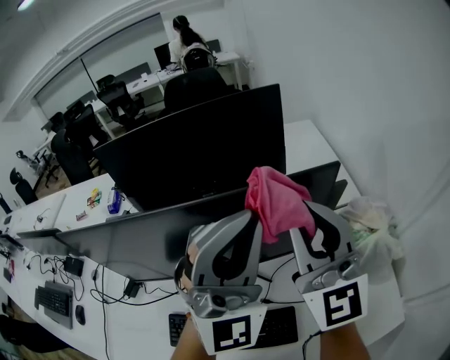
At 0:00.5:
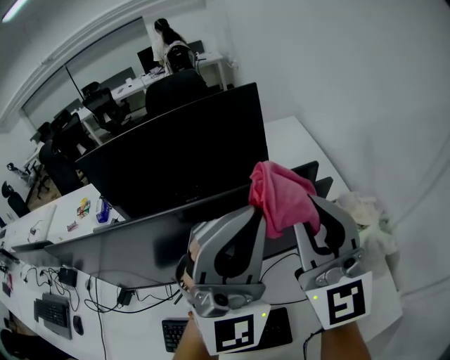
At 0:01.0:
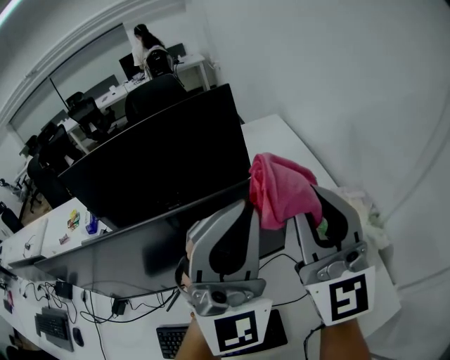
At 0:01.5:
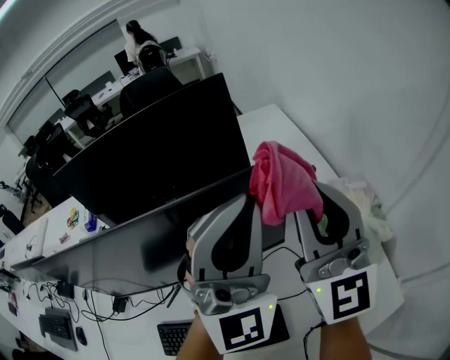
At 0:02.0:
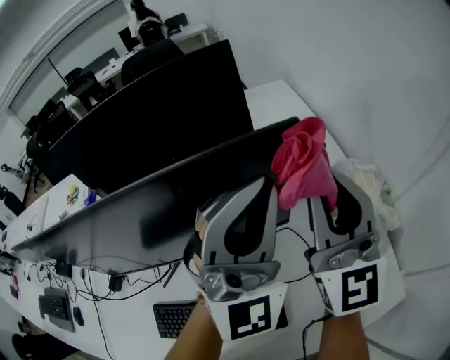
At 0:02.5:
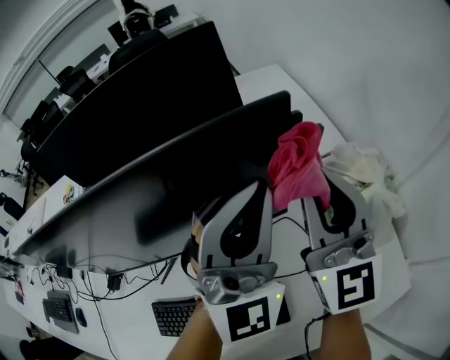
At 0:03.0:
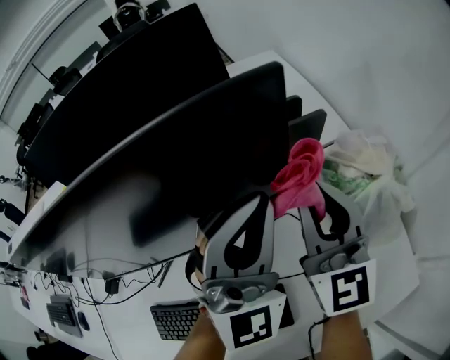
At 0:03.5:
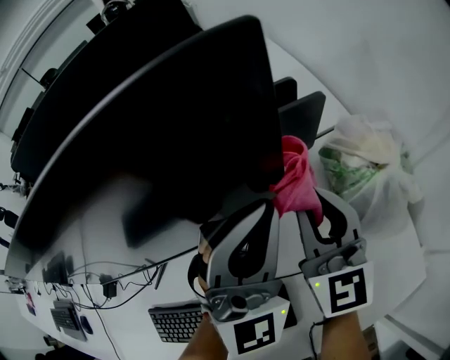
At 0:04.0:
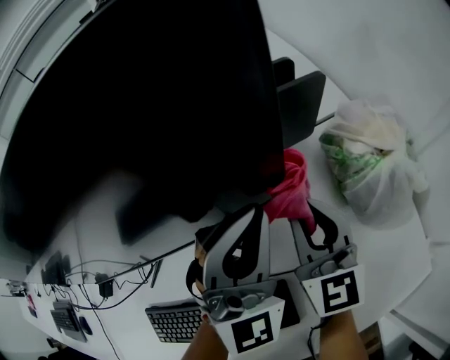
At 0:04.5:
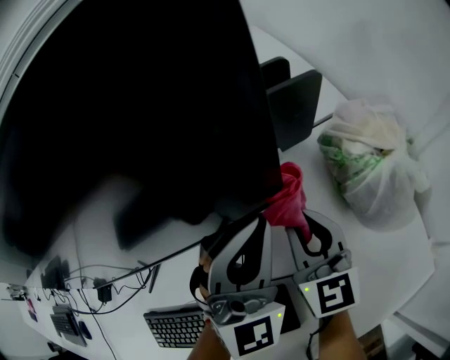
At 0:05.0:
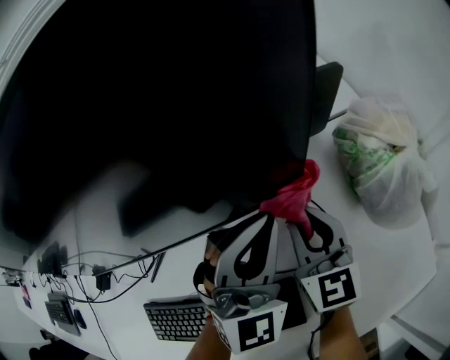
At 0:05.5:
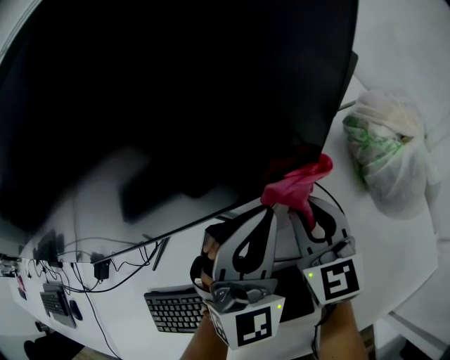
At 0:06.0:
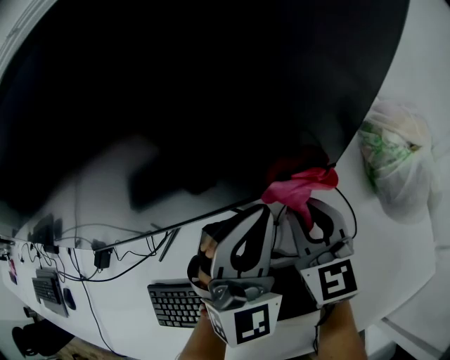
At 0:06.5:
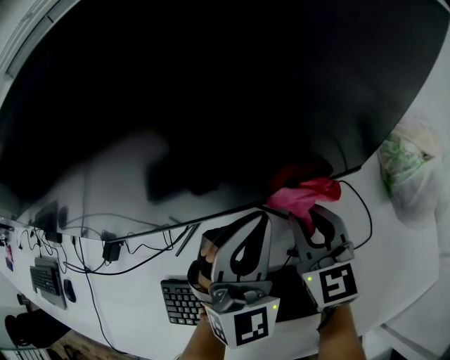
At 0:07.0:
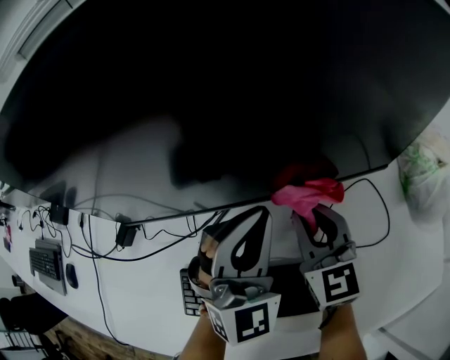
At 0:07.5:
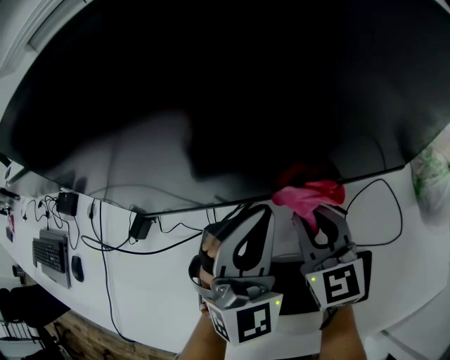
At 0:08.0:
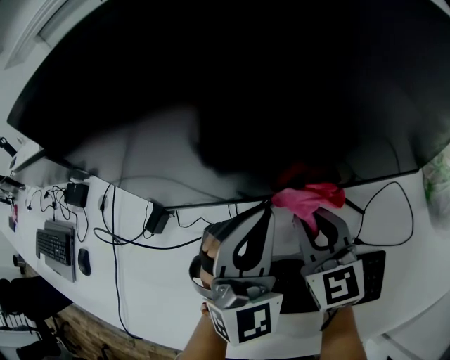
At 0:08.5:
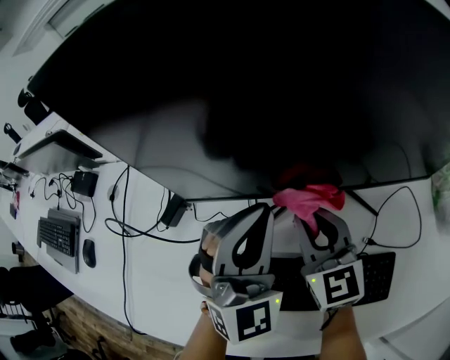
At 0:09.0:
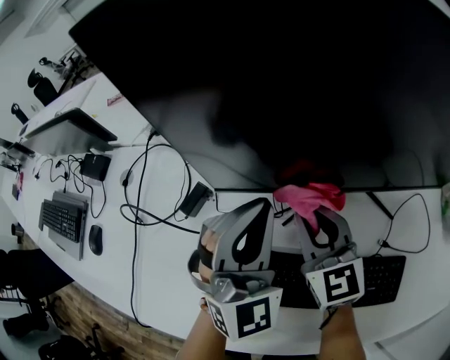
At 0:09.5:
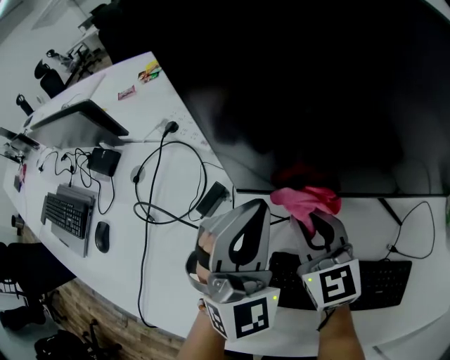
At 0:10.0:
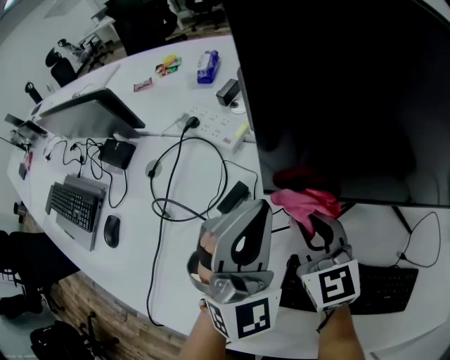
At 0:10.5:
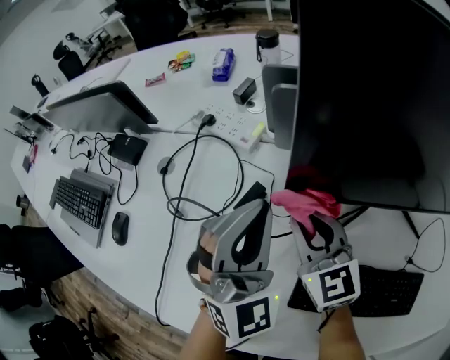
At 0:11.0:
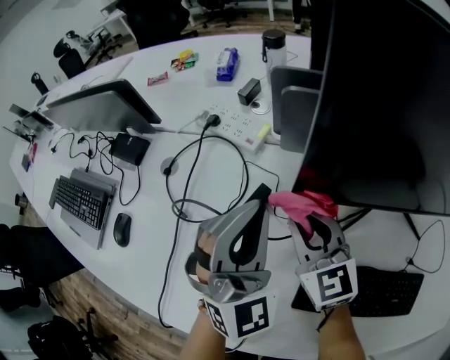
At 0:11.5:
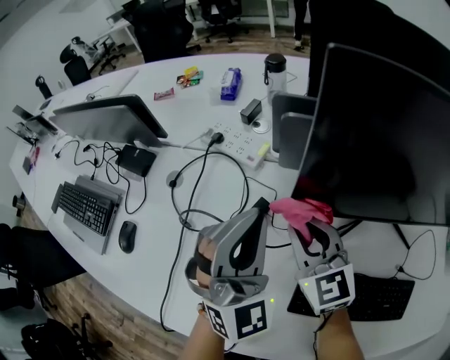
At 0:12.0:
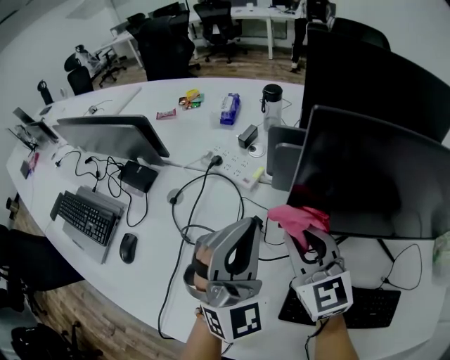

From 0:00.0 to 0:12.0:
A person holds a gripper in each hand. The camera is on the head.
From 0:00.0 to 0:02.0: The two grippers go approximately 10 cm to the right.
From 0:02.0 to 0:04.0: The two grippers go roughly 20 cm downward. The right gripper swivels approximately 20 degrees.
From 0:04.0 to 0:06.0: The two grippers go some 10 cm to the left.
From 0:06.0 to 0:08.0: The two grippers go approximately 25 cm to the left.
From 0:08.0 to 0:10.0: The two grippers go approximately 20 cm to the left.
From 0:10.0 to 0:12.0: The right gripper is displaced upward by about 10 cm. The left gripper goes some 10 cm to the left and upward.

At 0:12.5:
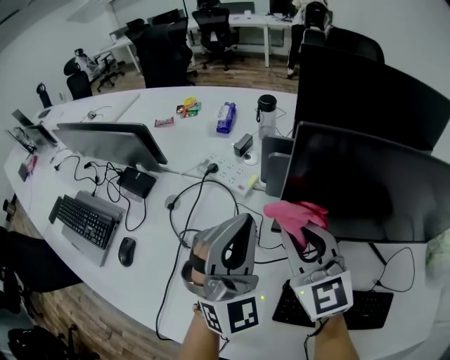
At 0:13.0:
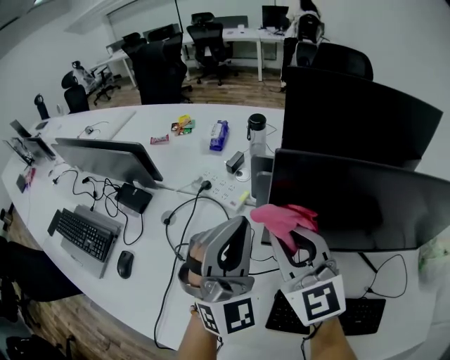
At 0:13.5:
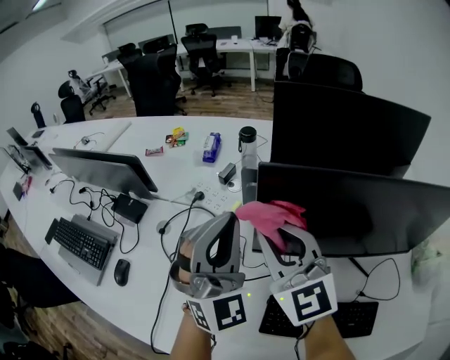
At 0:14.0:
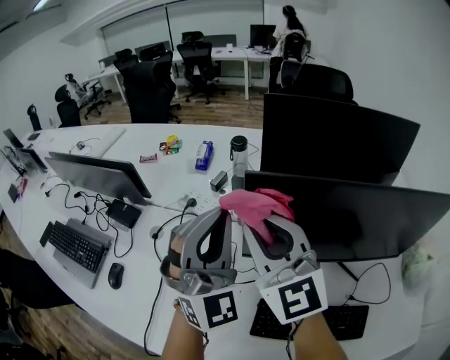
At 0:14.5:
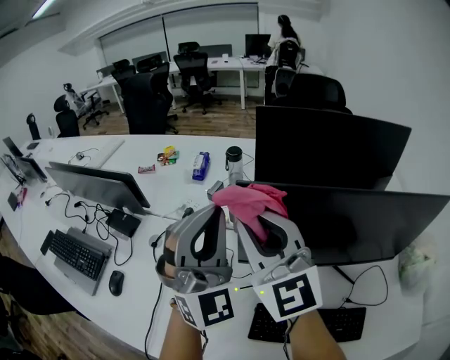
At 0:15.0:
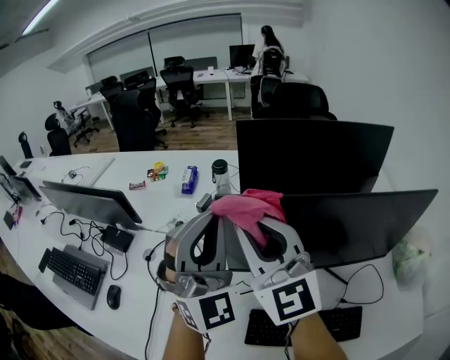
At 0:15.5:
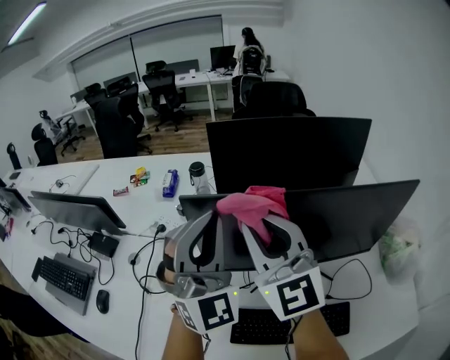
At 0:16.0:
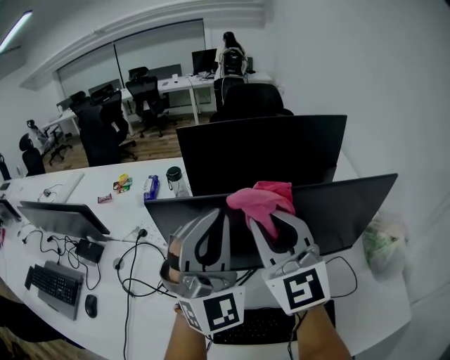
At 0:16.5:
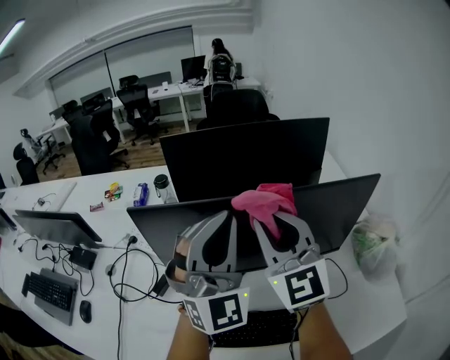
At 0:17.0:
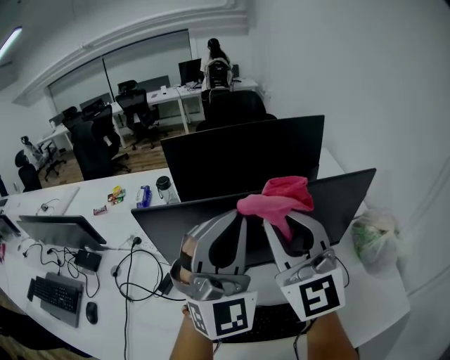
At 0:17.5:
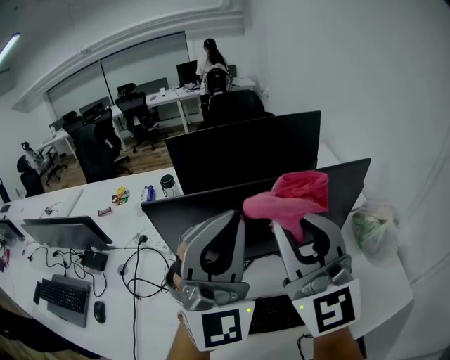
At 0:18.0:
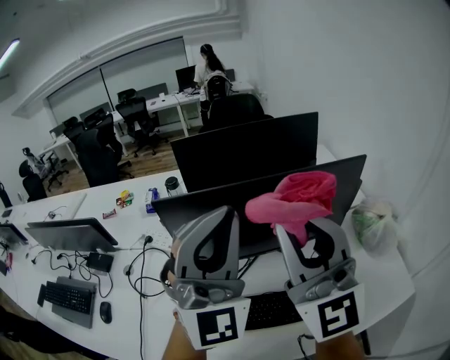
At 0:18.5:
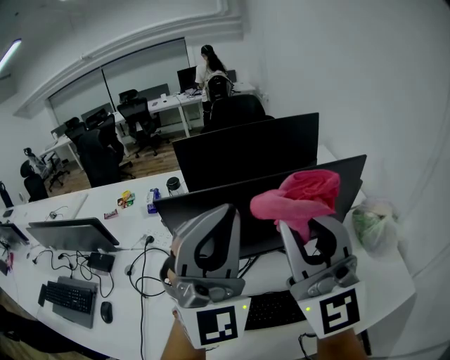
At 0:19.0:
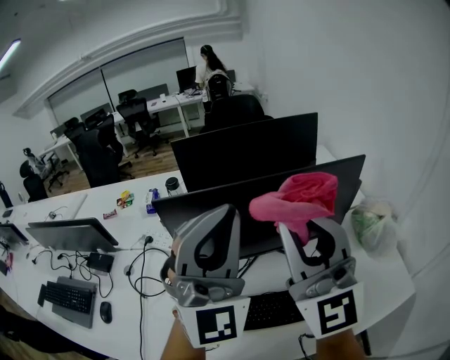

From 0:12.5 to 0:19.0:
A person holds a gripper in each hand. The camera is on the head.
From 0:12.5 to 0:14.5: The two grippers go roughly 15 cm upward.
From 0:14.5 to 0:17.0: Both grippers move to the right, about 25 cm. The right gripper turns by about 20 degrees; the left gripper changes its angle by roughly 20 degrees.
From 0:17.0 to 0:19.0: The grippers both shift backward and upward by about 10 cm.

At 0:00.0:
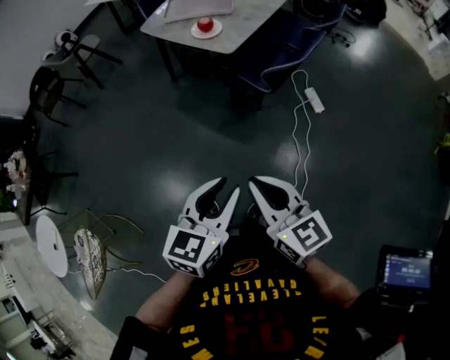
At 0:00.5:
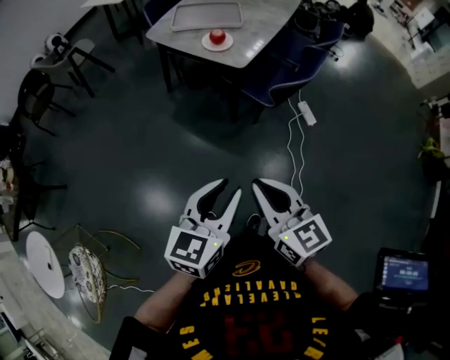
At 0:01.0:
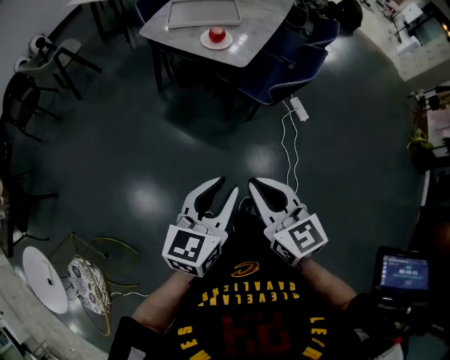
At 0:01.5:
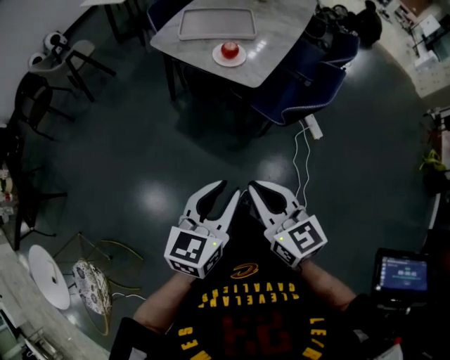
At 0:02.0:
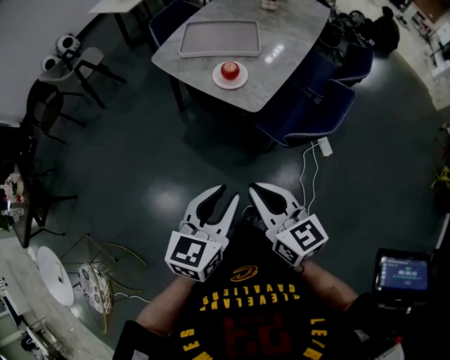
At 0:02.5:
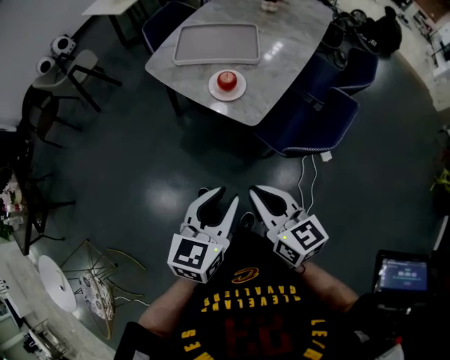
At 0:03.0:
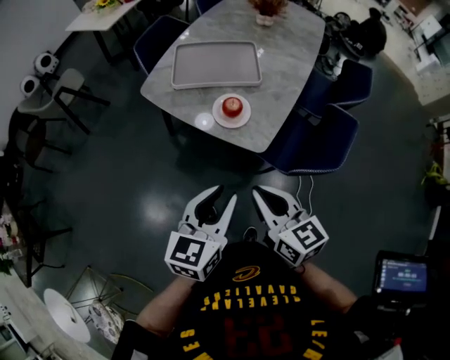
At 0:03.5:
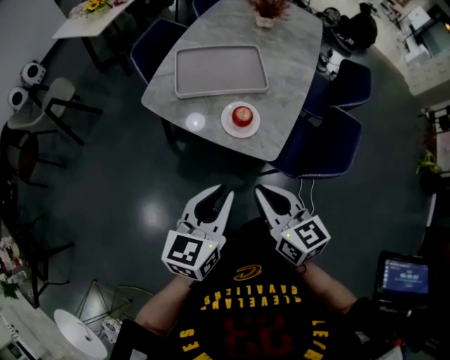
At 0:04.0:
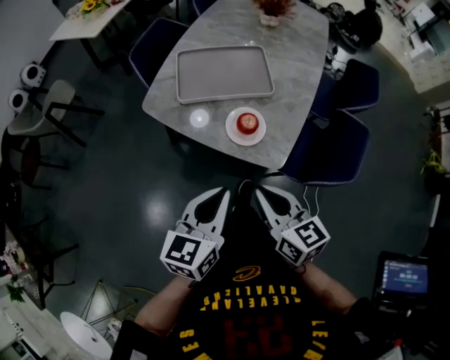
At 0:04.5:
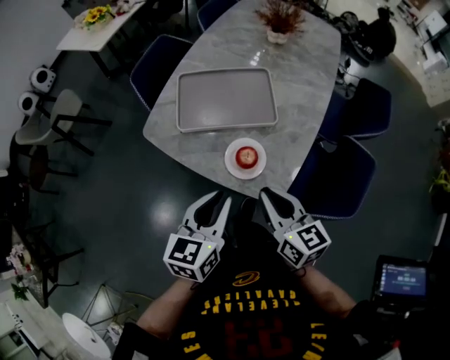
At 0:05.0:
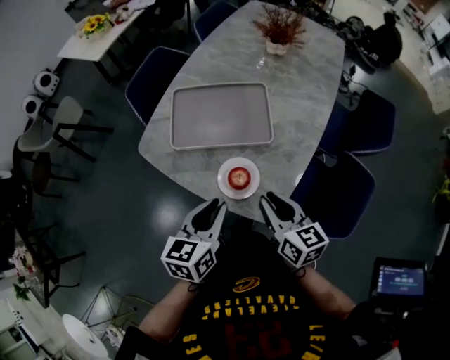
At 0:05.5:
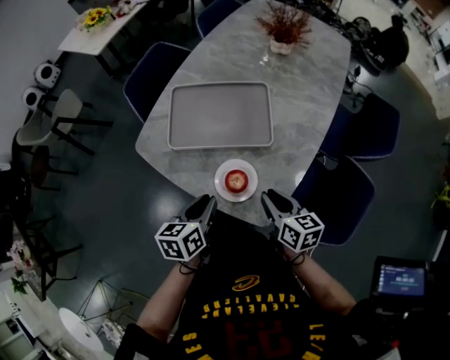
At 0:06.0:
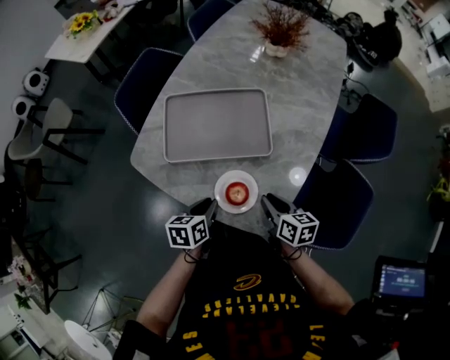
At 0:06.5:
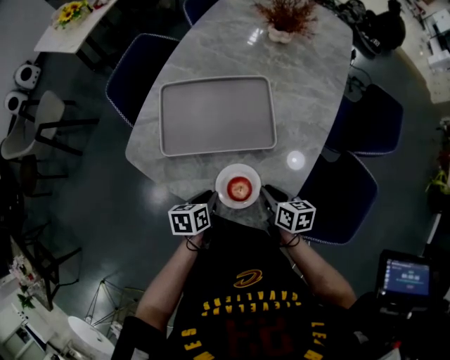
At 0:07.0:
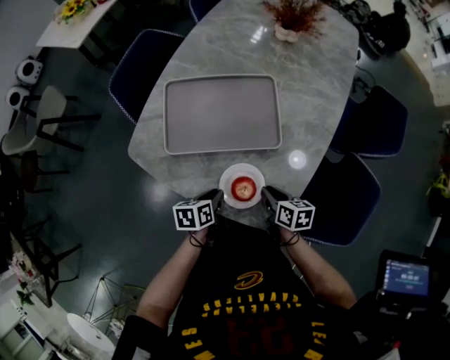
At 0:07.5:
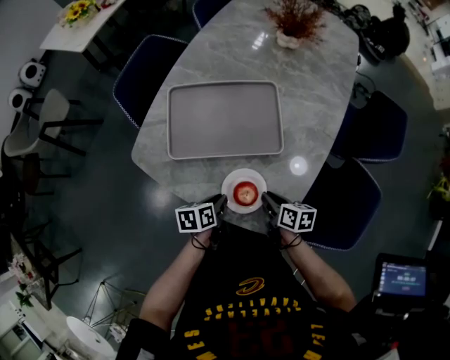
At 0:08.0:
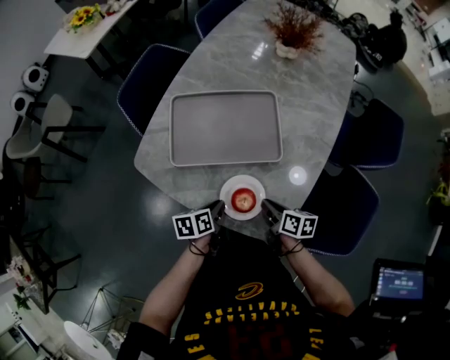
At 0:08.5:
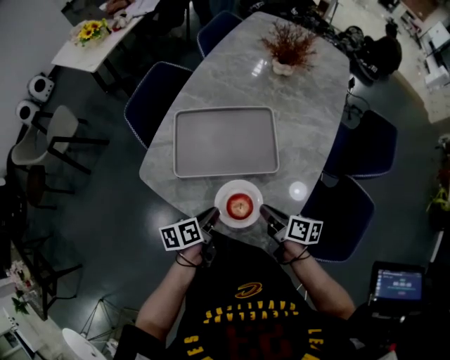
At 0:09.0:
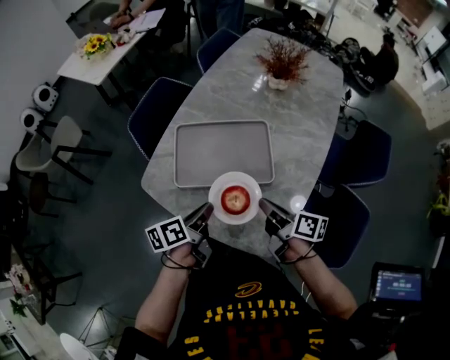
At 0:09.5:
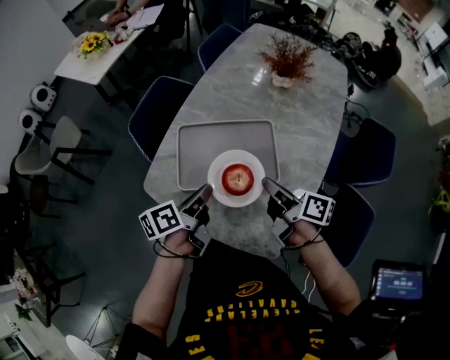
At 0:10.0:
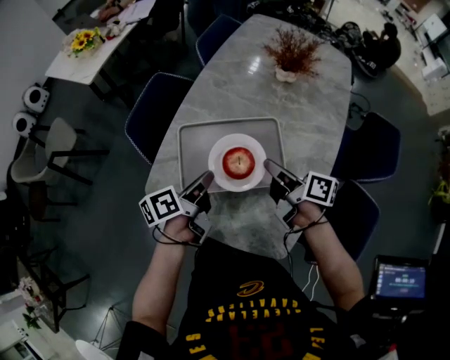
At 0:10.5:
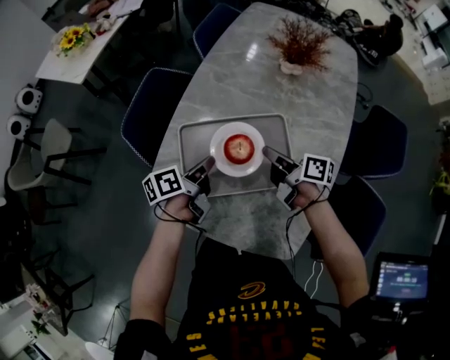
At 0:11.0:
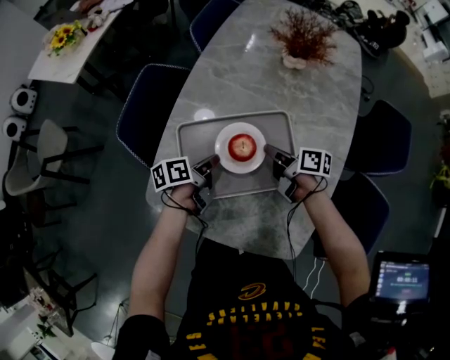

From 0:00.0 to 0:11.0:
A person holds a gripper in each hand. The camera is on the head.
From 0:00.0 to 0:02.0: The two grippers go approximately 25 cm forward.
From 0:02.0 to 0:03.5: The left gripper heads forward and to the left, covering some 25 cm; the right gripper travels forward by roughly 20 cm.
From 0:03.5 to 0:05.5: The left gripper is displaced forward and downward by some 25 cm, and rotates about 30 degrees. The right gripper shifts some 30 cm forward, downward and to the right.
From 0:05.5 to 0:07.5: Both grippers move downward, roughly 15 cm. The left gripper turns by approximately 20 degrees, while the right gripper turns by approximately 20 degrees.
From 0:07.5 to 0:09.0: Both grippers travel together upward, approximately 20 cm. The left gripper changes its angle by some 30 degrees. Meanwhile the right gripper changes its angle by roughly 30 degrees.
From 0:09.0 to 0:11.0: The grippers both shift forward and downward by roughly 25 cm.
